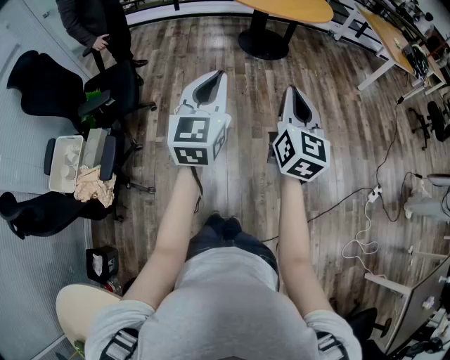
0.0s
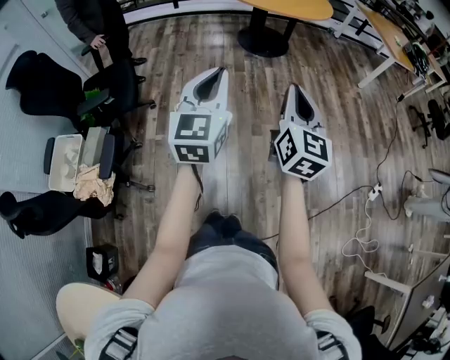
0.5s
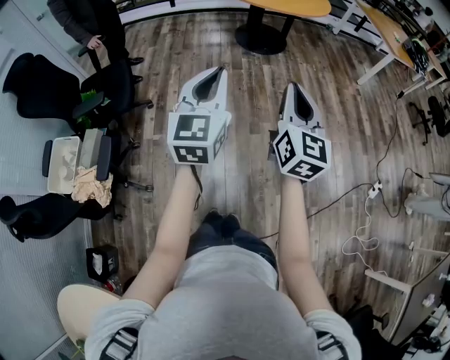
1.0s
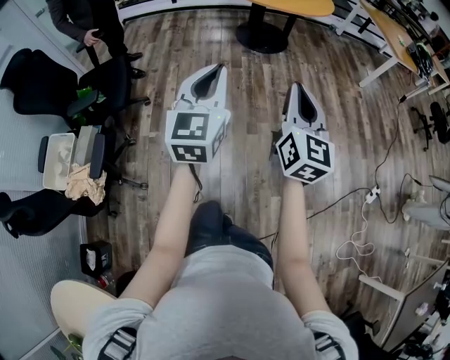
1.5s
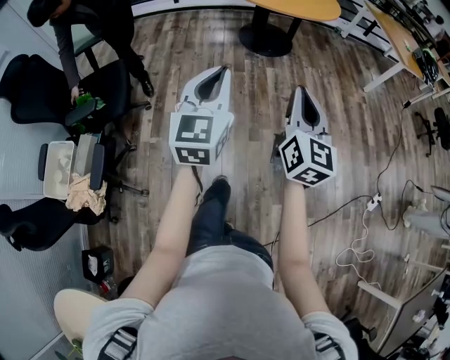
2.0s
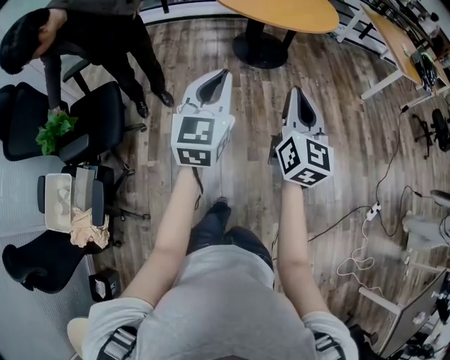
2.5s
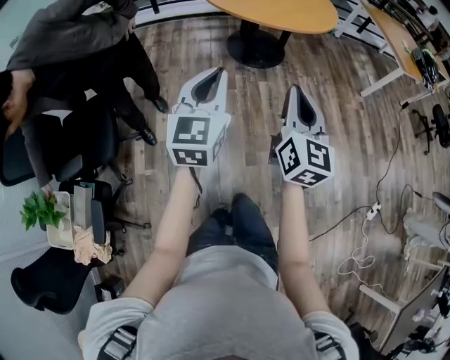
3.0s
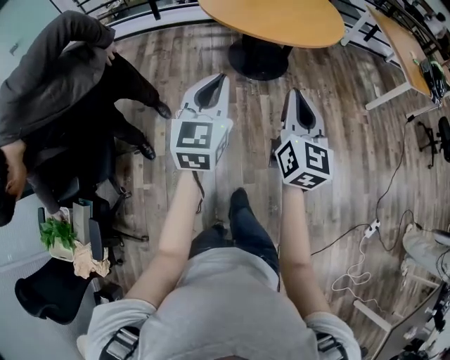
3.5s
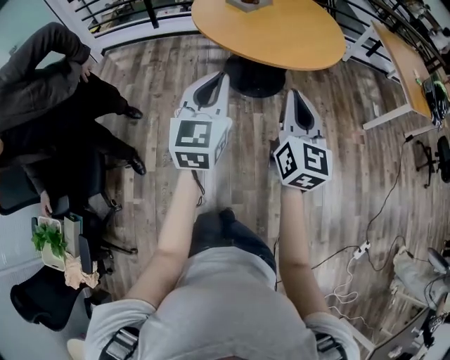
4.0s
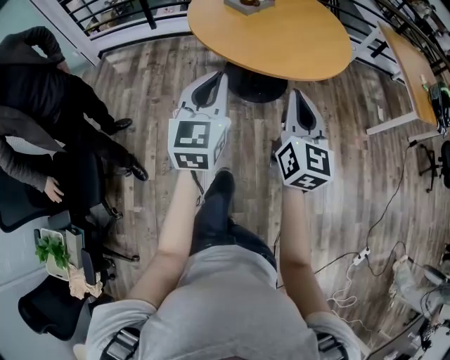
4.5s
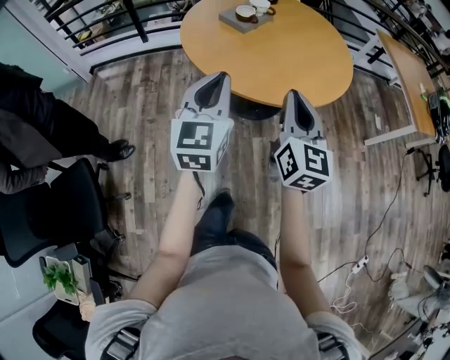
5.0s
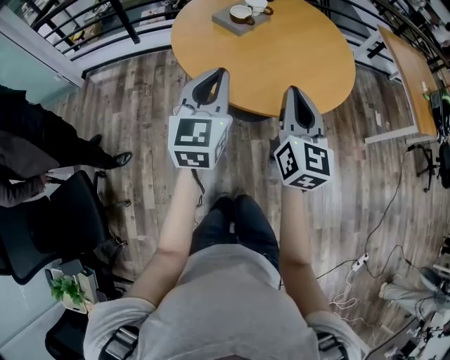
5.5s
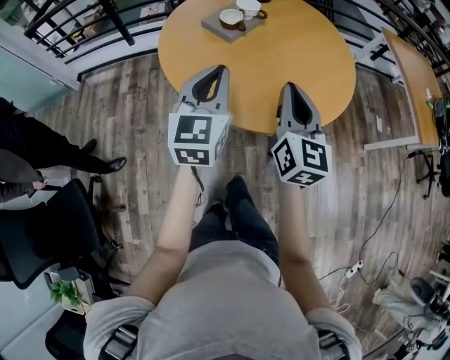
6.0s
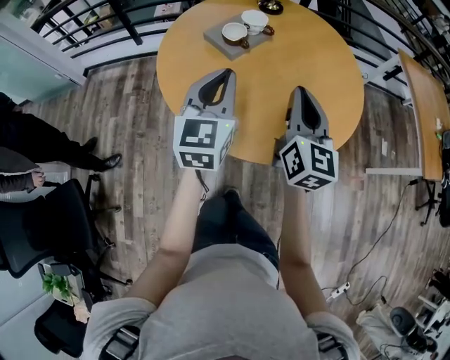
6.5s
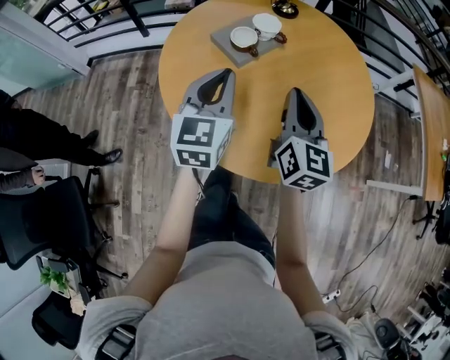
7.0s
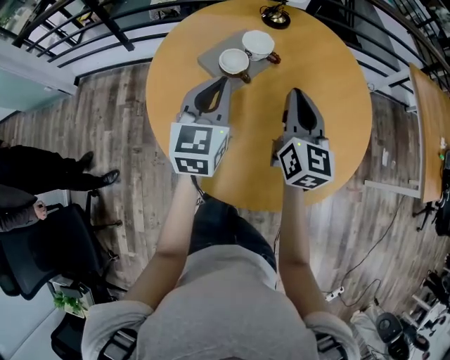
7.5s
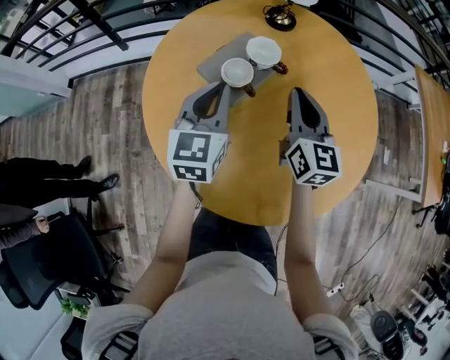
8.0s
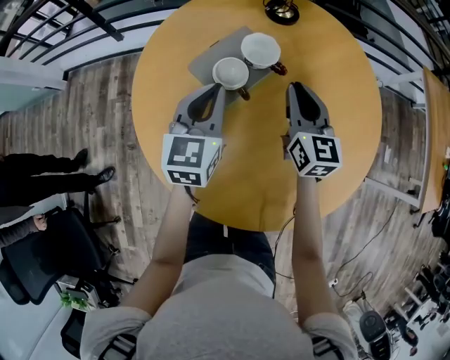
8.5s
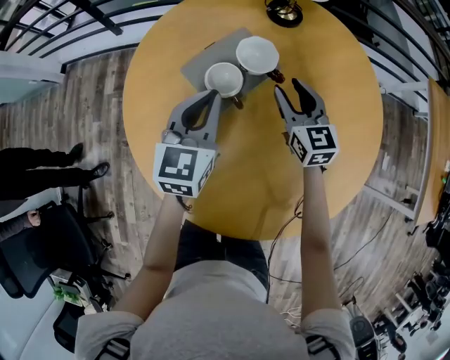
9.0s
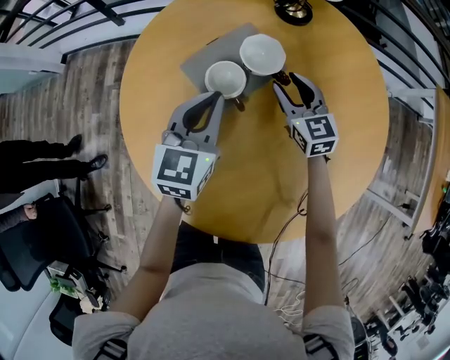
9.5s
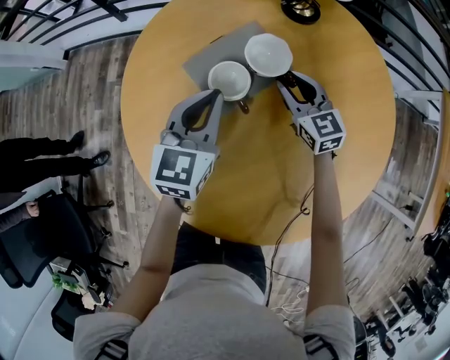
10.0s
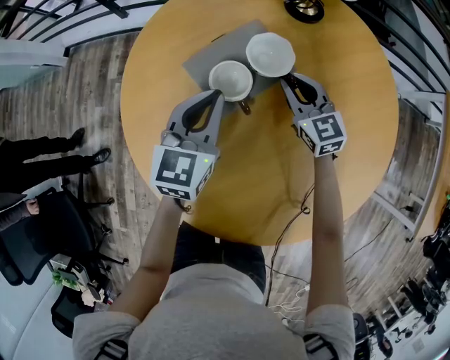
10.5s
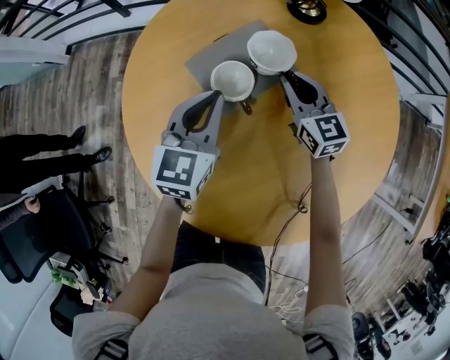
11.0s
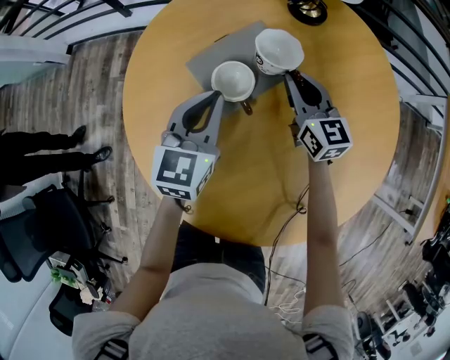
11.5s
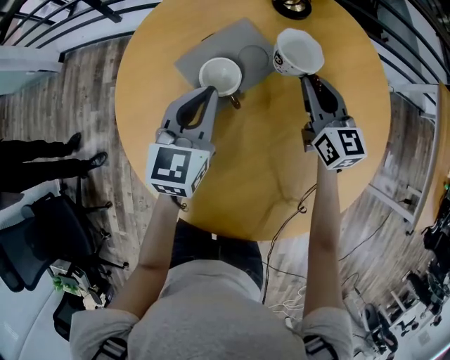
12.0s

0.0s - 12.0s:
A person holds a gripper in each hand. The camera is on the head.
0.0s - 2.0s: Both grippers move forward, some 10 cm.
2.0s - 4.0s: The pair of grippers is taken forward, approximately 50 cm.
4.0s - 6.0s: Both grippers are carried forward, about 40 cm.
6.0s - 8.0s: Both grippers move forward, approximately 35 cm.
8.0s - 10.0s: The left gripper goes about 10 cm downward and forward. Meanwhile the right gripper moves downward and forward, approximately 20 cm, changes its angle by about 40 degrees, and opens up.
10.0s - 12.0s: The right gripper heads upward and to the right, covering about 10 cm, and swivels approximately 20 degrees.

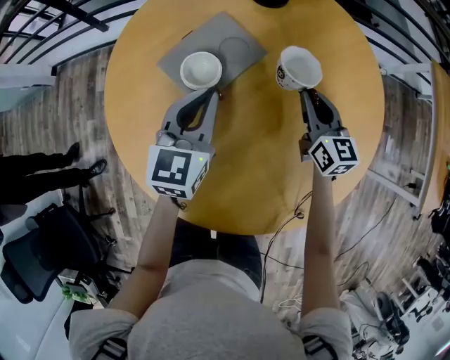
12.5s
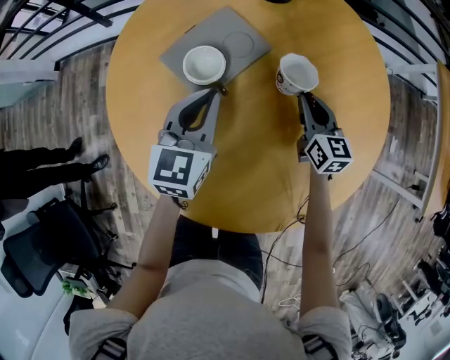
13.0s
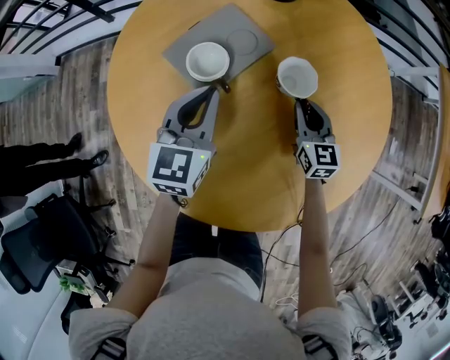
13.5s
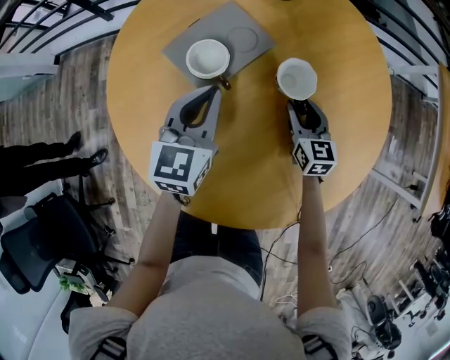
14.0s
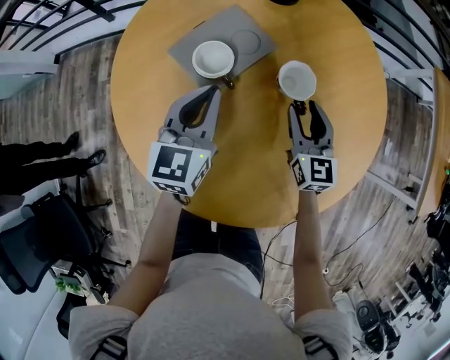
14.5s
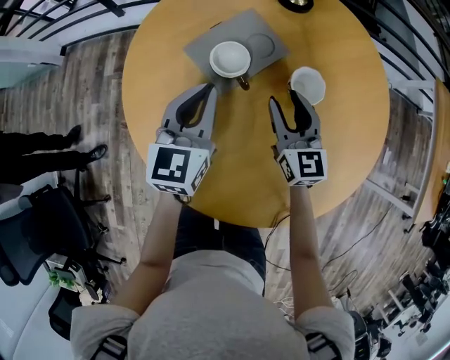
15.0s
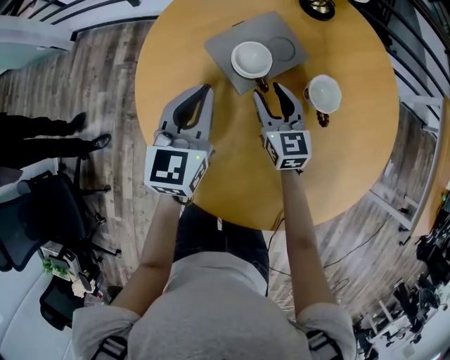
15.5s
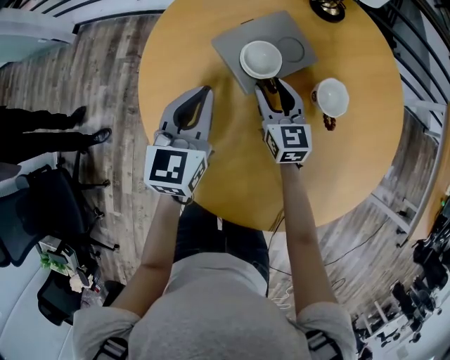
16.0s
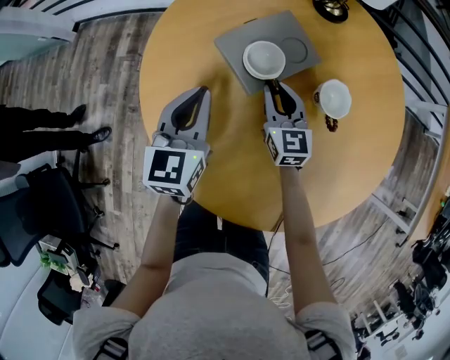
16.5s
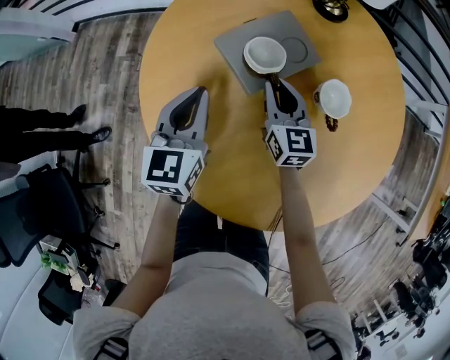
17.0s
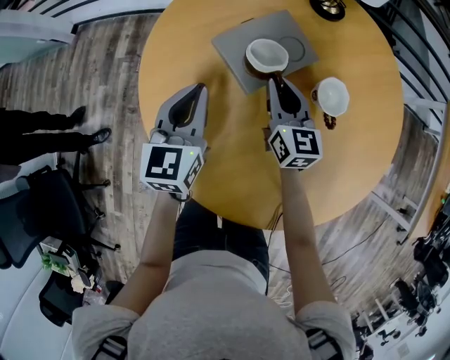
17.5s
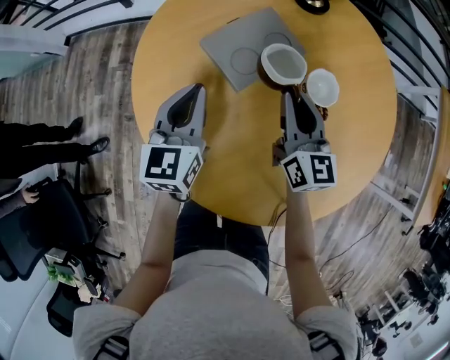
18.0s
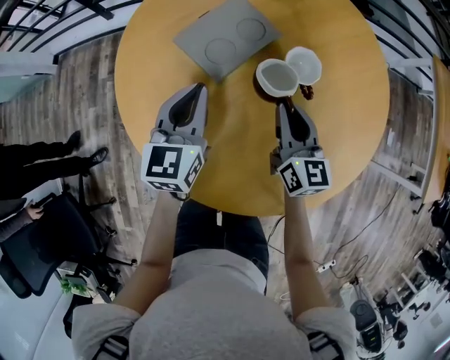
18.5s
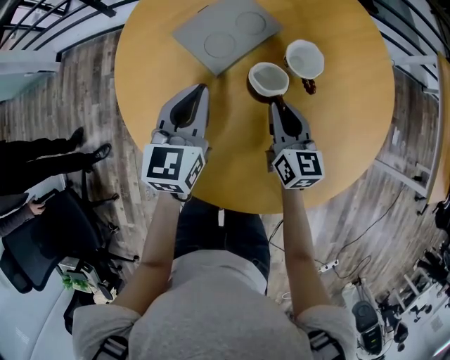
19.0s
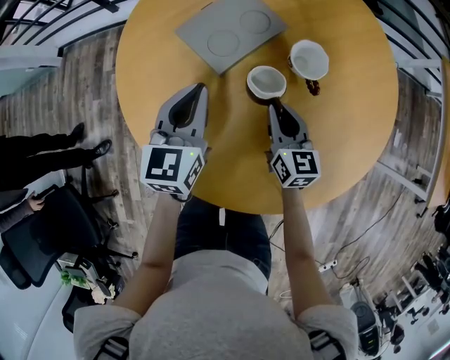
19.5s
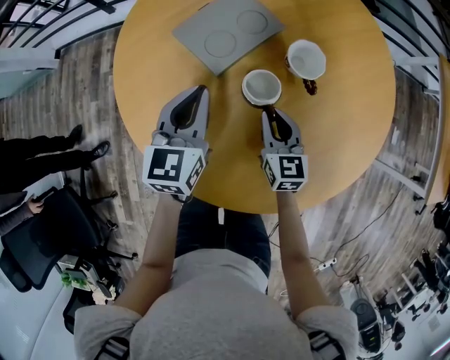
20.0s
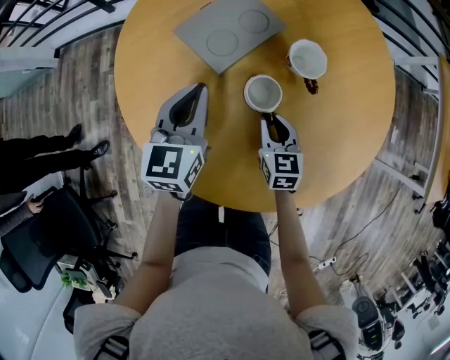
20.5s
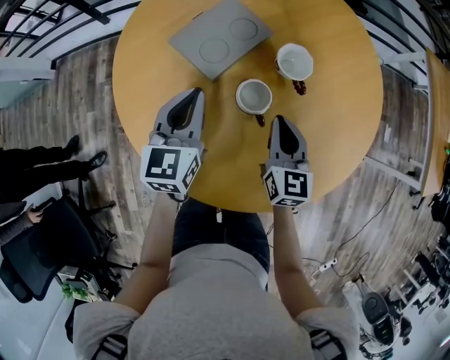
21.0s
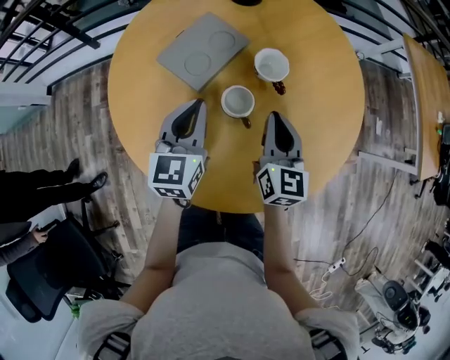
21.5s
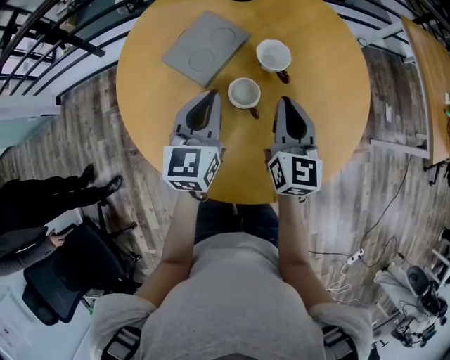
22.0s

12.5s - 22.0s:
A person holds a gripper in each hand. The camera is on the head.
12.5s - 14.5s: The right gripper shifts about 5 cm backward, moves some 10 cm downward and comes back, and opens up.
14.5s - 16.5s: The grippers both shift to the left by approximately 15 cm. The right gripper closes up.
16.5s - 18.0s: The right gripper travels upward and to the right by approximately 10 cm.
18.0s - 20.0s: The right gripper heads downward and backward, covering about 15 cm. The left gripper heads to the right, covering approximately 5 cm.
20.0s - 22.0s: The left gripper goes about 10 cm upward and to the right, while the right gripper travels upward by about 15 cm, and turns by approximately 30 degrees.

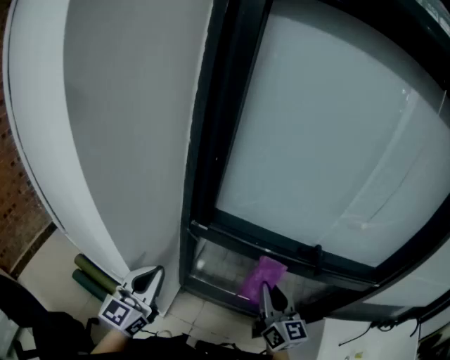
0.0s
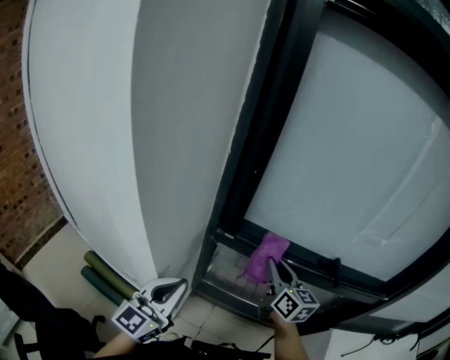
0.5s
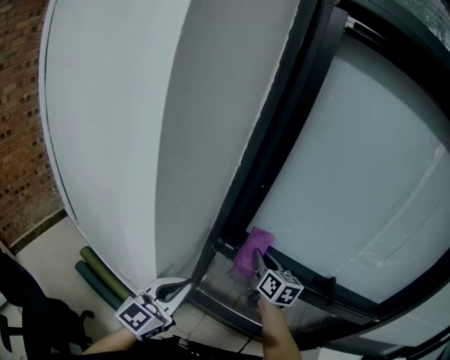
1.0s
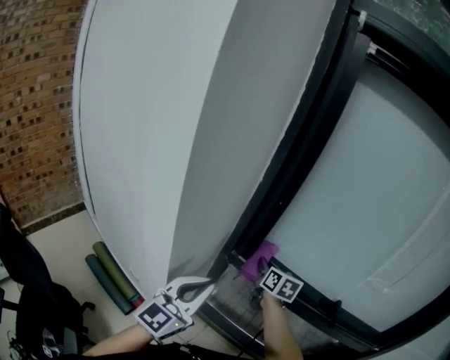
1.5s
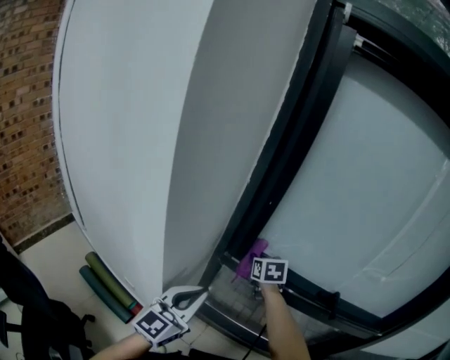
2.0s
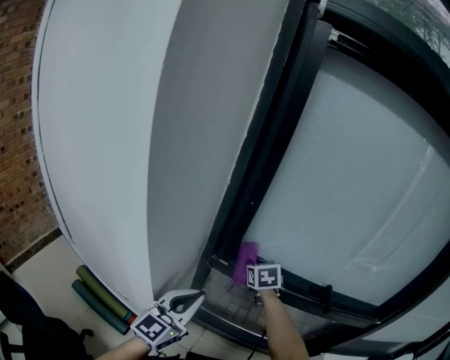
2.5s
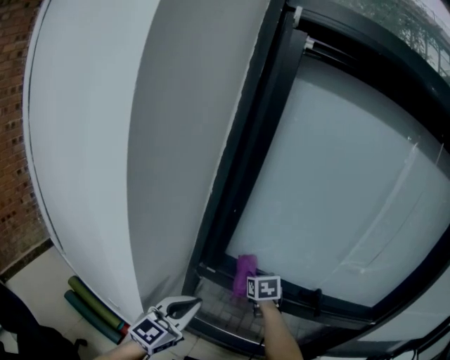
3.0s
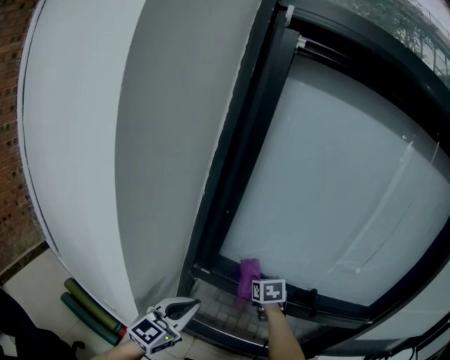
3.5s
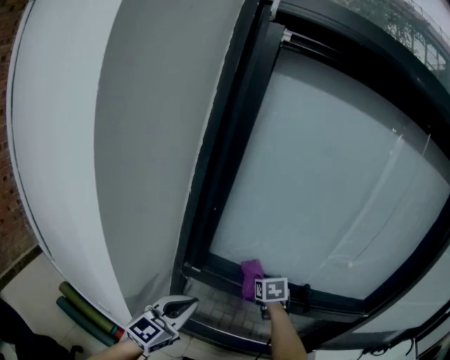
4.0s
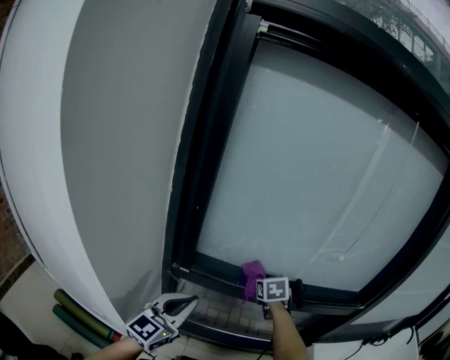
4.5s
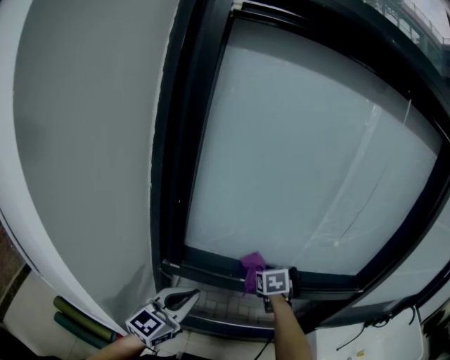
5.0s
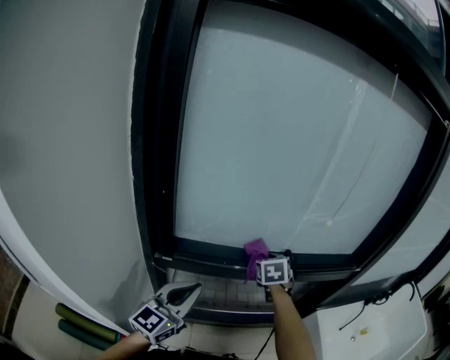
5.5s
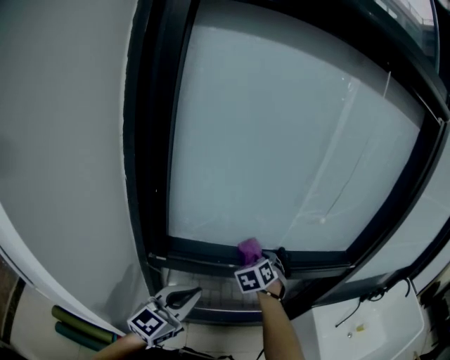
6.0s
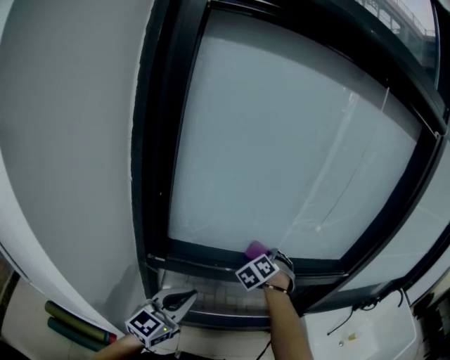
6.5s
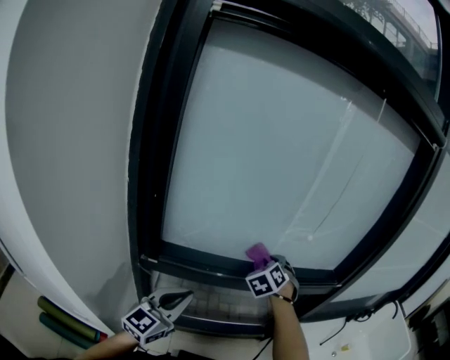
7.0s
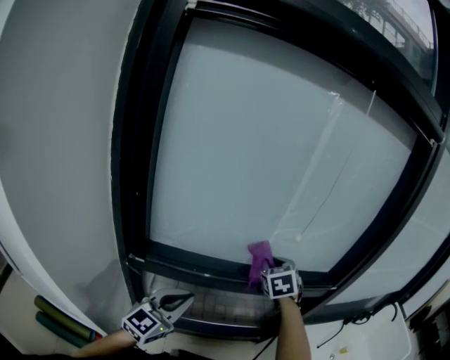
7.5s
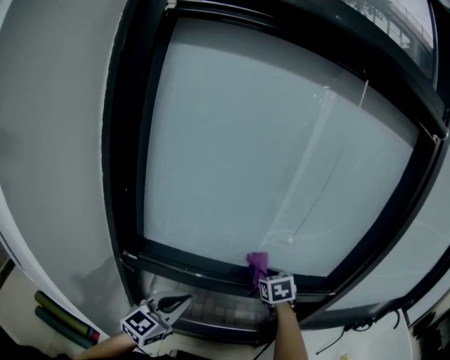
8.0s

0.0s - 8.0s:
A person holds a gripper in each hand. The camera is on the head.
0.0s - 2.0s: The right gripper goes some 30 cm forward and to the left, and tips its fingers downward by approximately 40 degrees.
2.0s - 4.0s: The left gripper is displaced to the right by approximately 5 cm. Meanwhile the right gripper goes approximately 15 cm to the right.
4.0s - 6.0s: The right gripper changes place by about 10 cm, and swivels some 30 degrees. Meanwhile the left gripper shifts by about 10 cm.
6.0s - 8.0s: The grippers both shift to the right and forward by approximately 10 cm. The right gripper turns by roughly 20 degrees.
